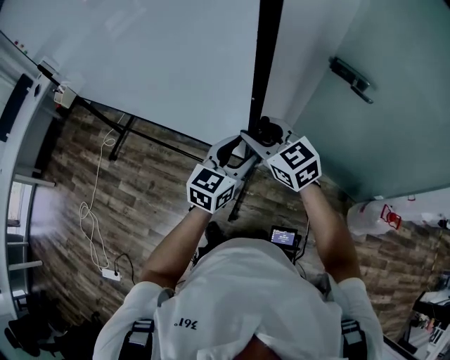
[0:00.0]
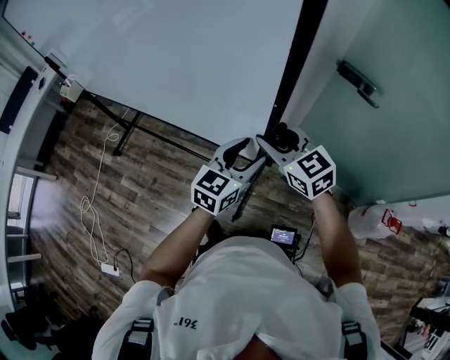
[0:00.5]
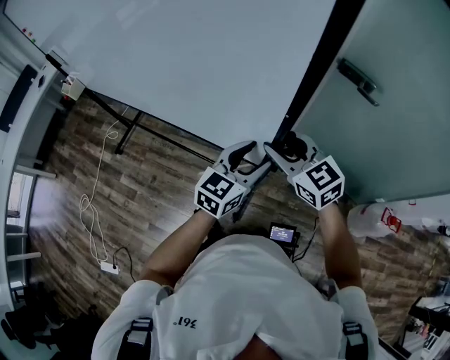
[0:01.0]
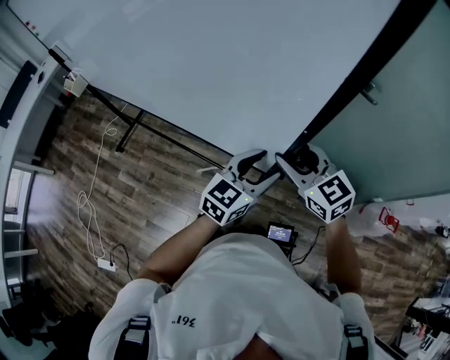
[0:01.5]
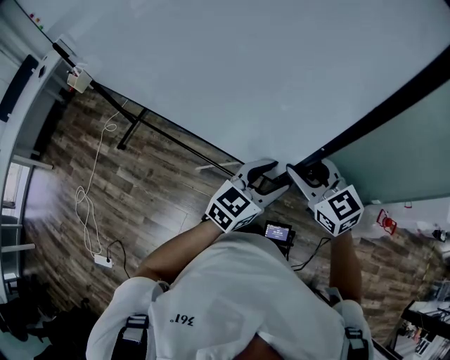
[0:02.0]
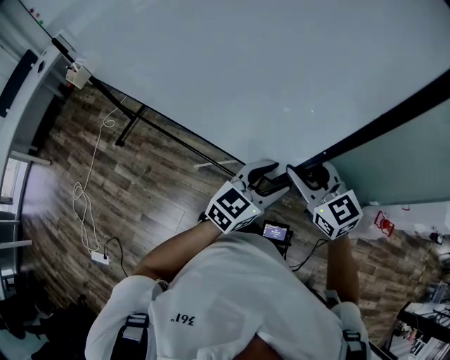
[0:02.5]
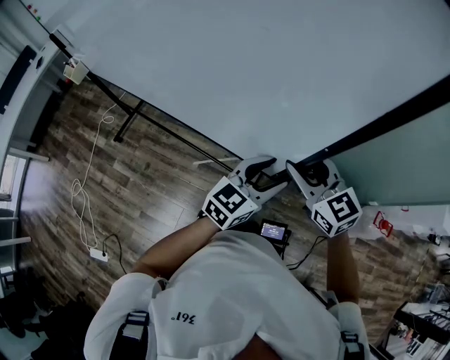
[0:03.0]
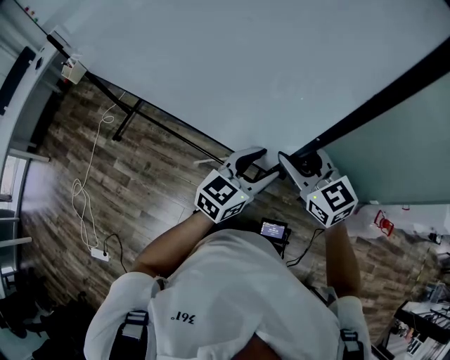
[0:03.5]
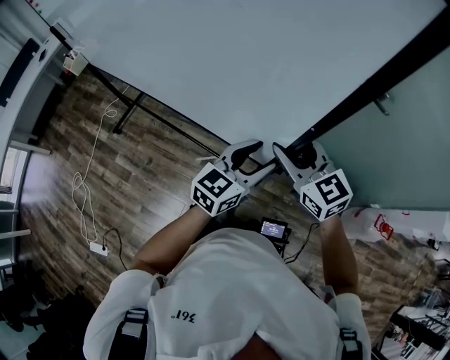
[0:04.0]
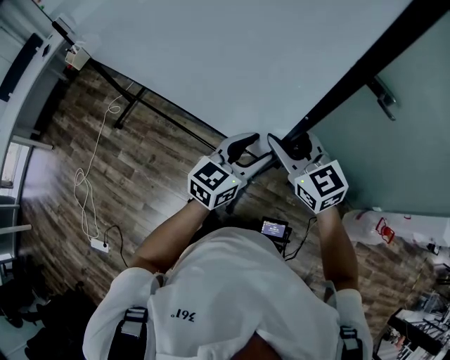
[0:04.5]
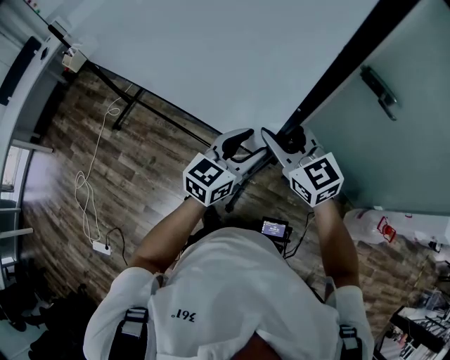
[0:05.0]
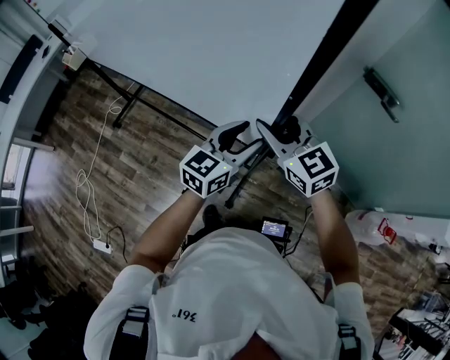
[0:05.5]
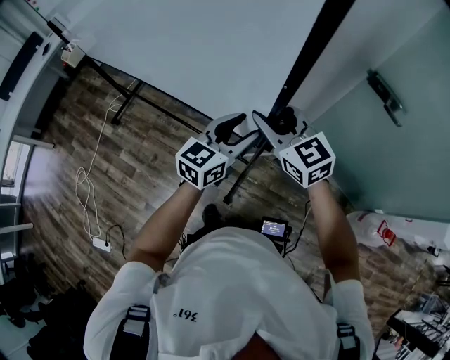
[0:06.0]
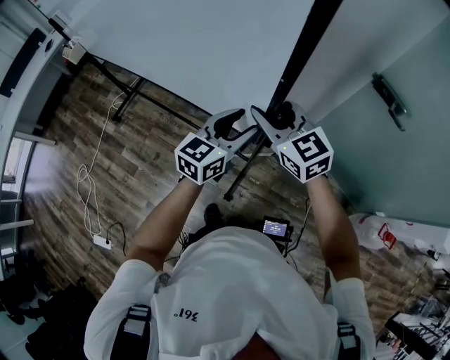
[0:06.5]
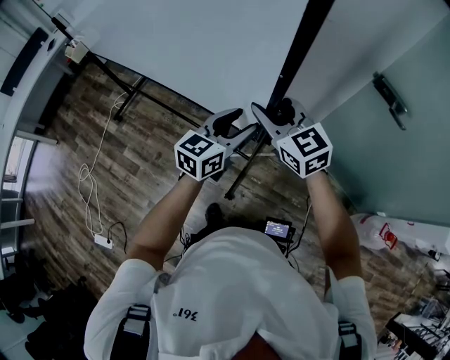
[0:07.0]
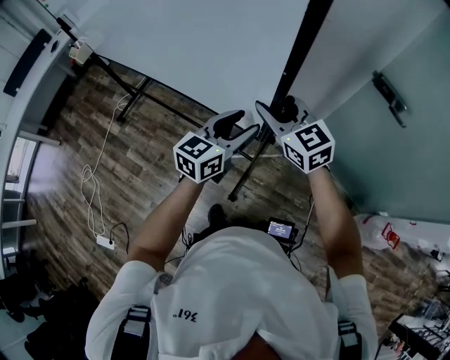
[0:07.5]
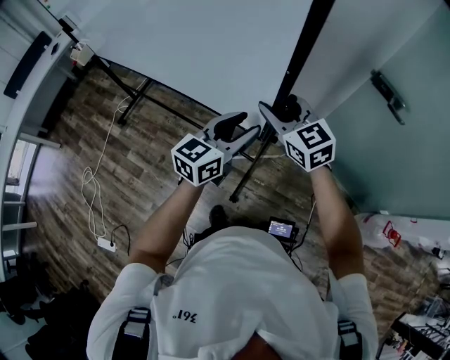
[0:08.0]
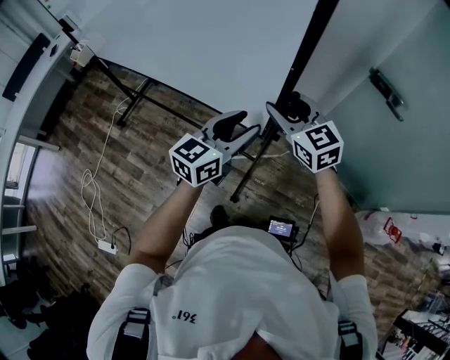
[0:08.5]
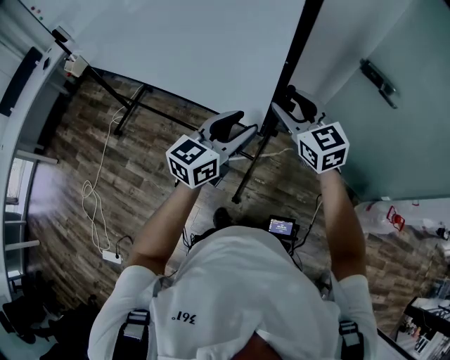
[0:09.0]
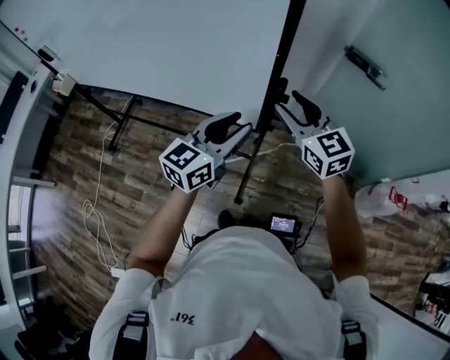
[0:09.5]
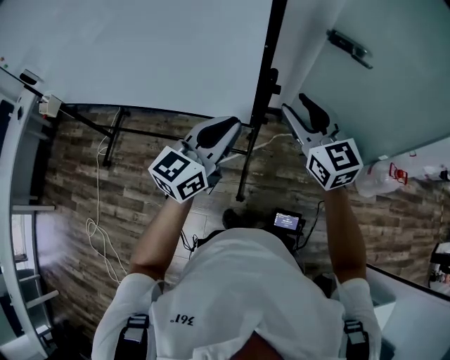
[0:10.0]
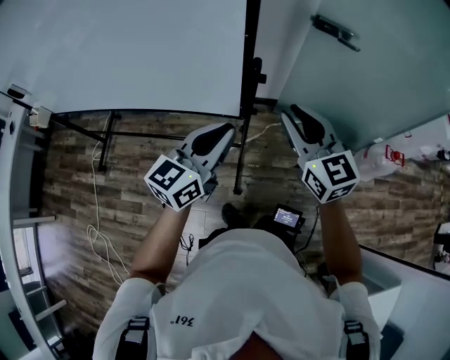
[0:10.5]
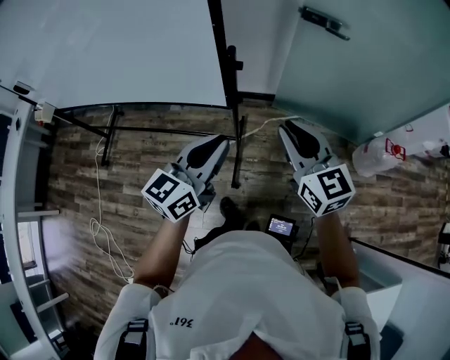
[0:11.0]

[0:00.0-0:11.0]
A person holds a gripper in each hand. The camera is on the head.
0:00.0 to 0:02.0: The grippers both shift backward and to the right by approximately 15 cm.
0:02.0 to 0:03.5: The right gripper changes place by about 5 cm. The left gripper shifts by roughly 5 cm.
0:03.5 to 0:05.5: The grippers both shift to the left and forward by about 15 cm.
0:05.5 to 0:07.5: The right gripper moves some 5 cm.
0:07.5 to 0:09.0: The left gripper ends up roughly 5 cm from where it was; the right gripper moves approximately 5 cm.
0:09.0 to 0:11.0: The right gripper moves backward and to the right, about 20 cm, changes its angle by approximately 20 degrees, and closes up. The left gripper travels backward by some 15 cm, and closes up.

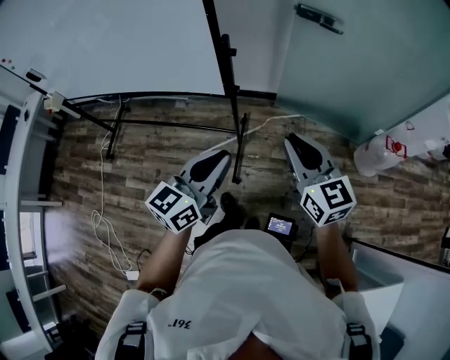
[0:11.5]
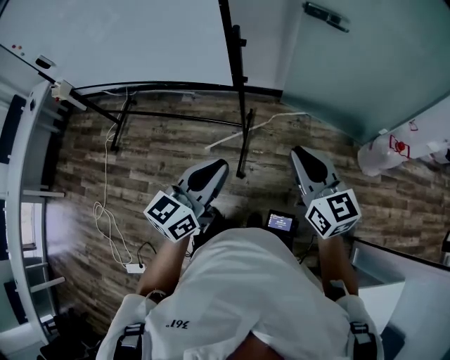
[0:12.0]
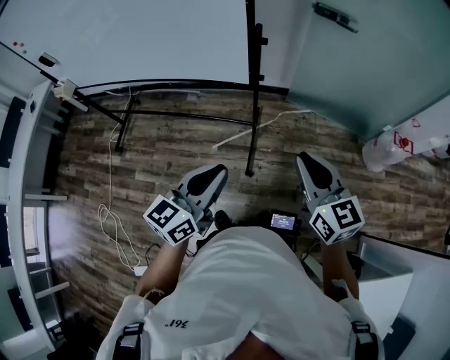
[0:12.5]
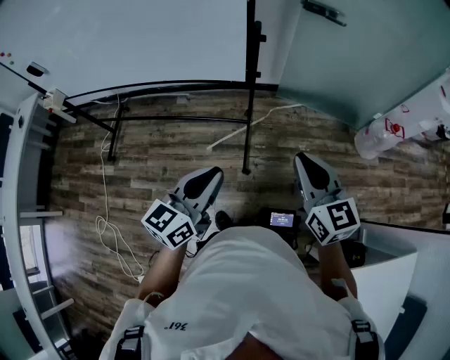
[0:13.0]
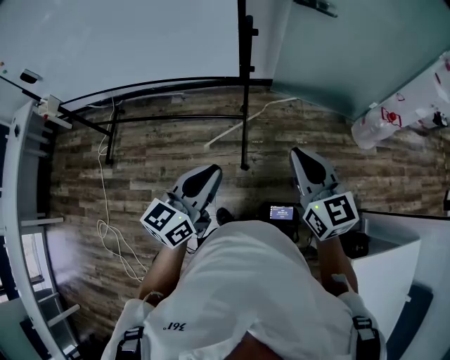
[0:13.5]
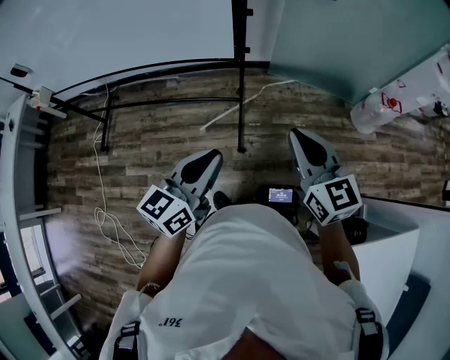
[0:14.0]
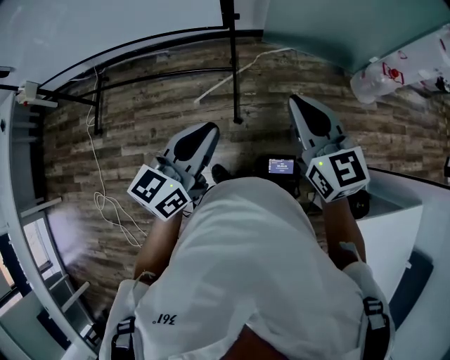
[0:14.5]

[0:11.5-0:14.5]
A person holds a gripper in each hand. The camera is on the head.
0:11.5 to 0:13.0: The left gripper shifts some 15 cm to the left and backward. Meanwhile the right gripper is displaced backward and to the left by some 15 cm.
0:13.0 to 0:14.5: The grippers make only small movements.

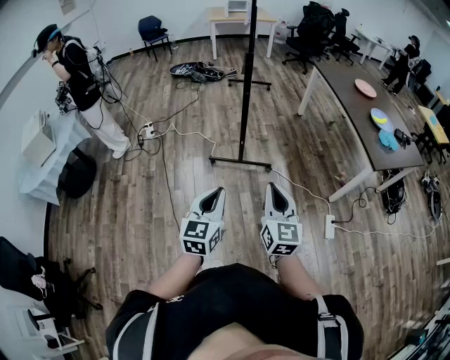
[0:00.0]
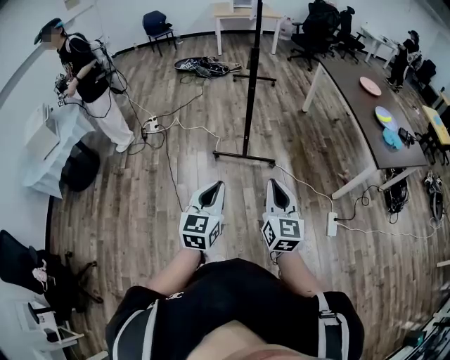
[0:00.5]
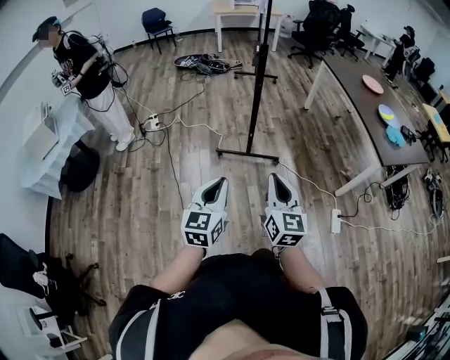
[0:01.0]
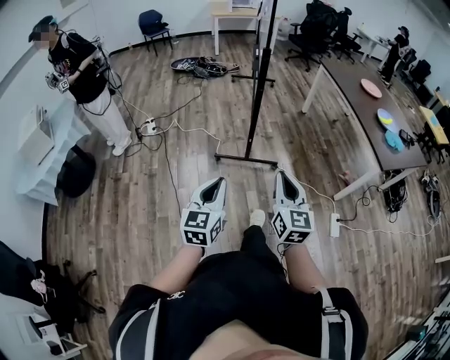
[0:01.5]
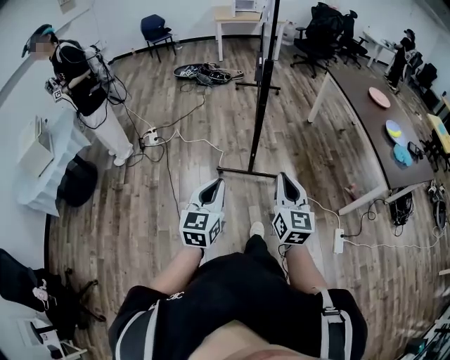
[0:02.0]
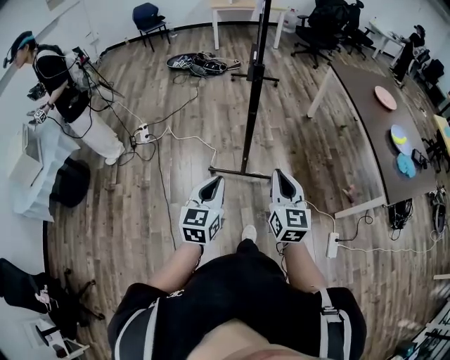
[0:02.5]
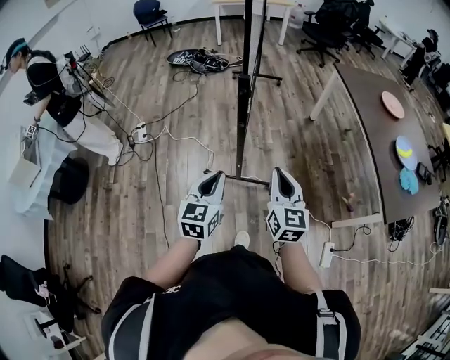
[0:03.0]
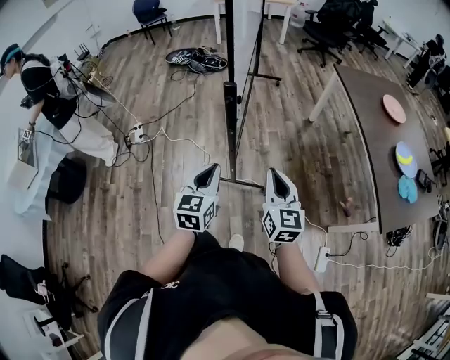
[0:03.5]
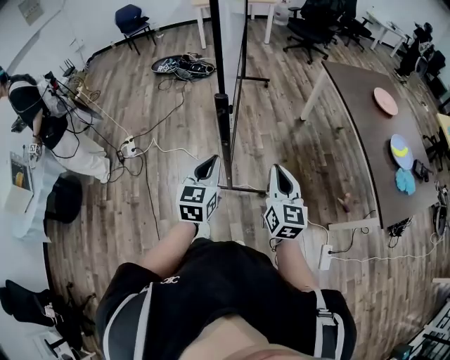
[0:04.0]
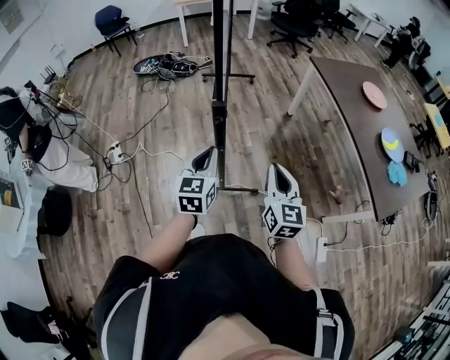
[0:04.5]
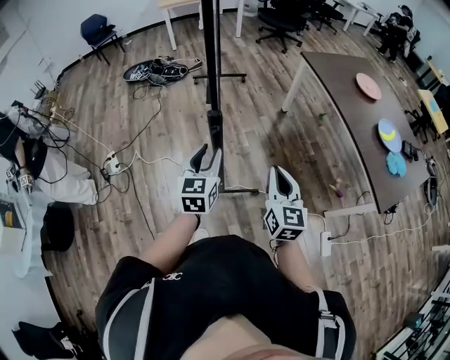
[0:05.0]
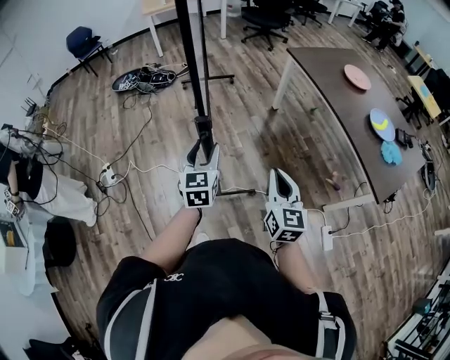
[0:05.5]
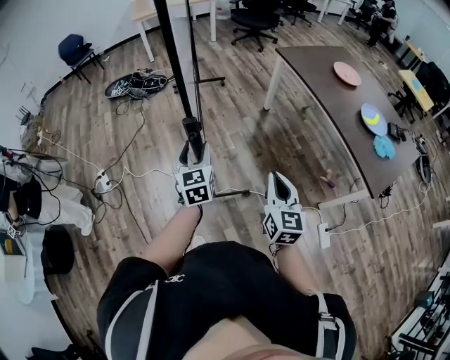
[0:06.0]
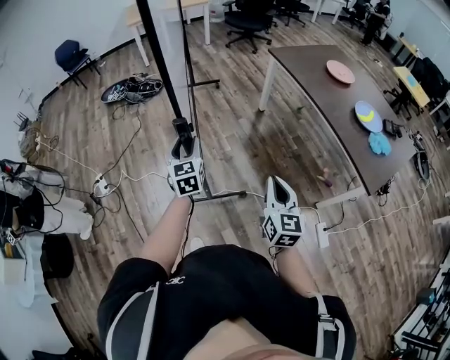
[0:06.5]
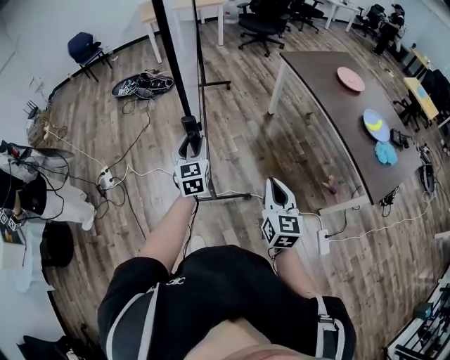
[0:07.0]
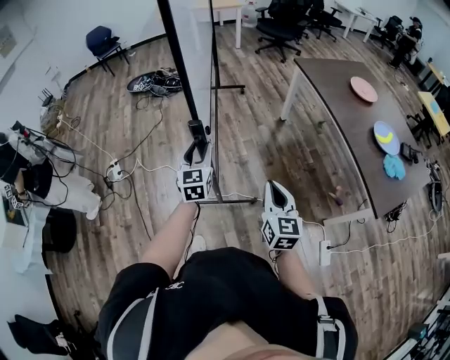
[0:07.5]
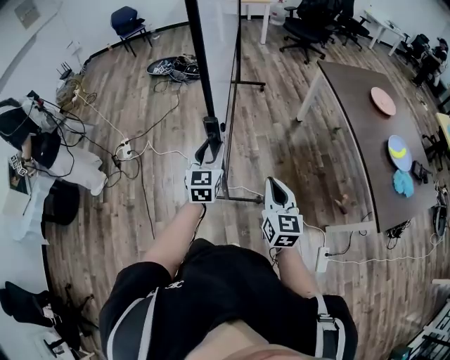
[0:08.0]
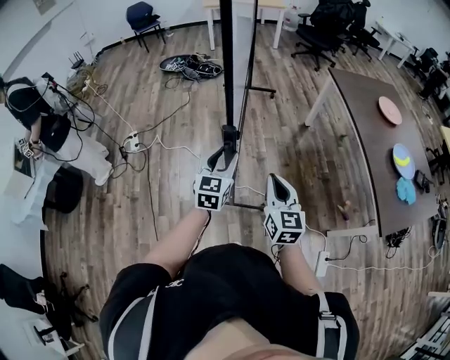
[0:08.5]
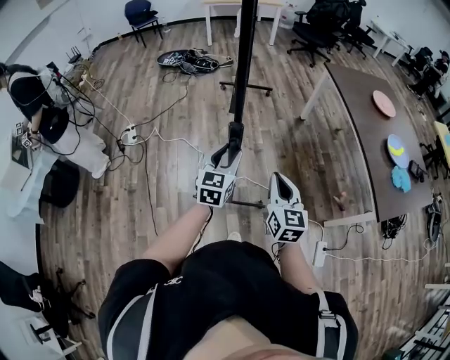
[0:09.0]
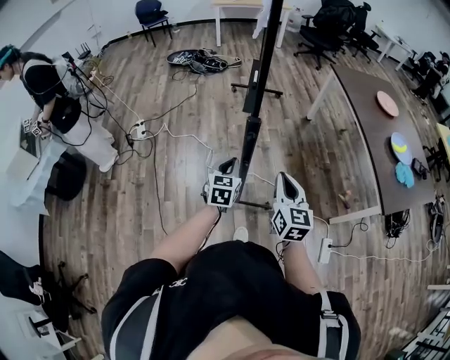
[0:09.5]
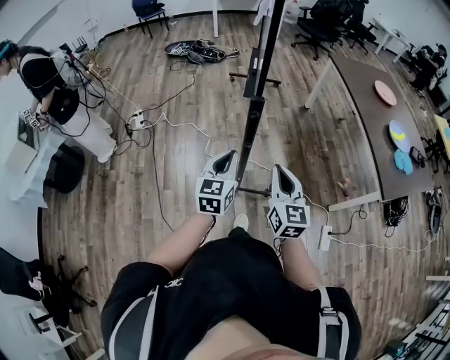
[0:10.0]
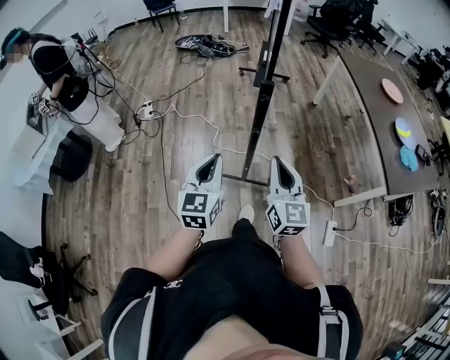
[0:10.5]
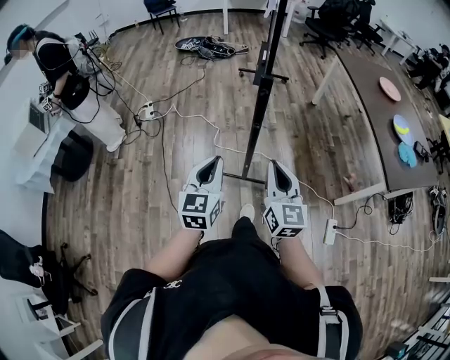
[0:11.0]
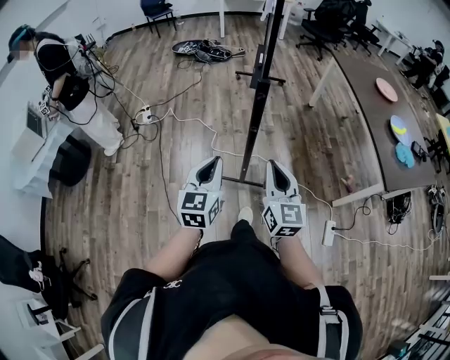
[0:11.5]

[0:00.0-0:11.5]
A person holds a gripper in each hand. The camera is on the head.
0:00.0 to 0:02.0: The right gripper moves forward, some 15 cm. Meanwhile the left gripper travels forward and to the left by approximately 15 cm.
0:02.0 to 0:04.0: Both grippers move forward, approximately 35 cm.
0:04.0 to 0:06.0: The left gripper heads forward, covering approximately 15 cm, and opens up.
0:06.0 to 0:07.5: The grippers make only small movements.
0:07.5 to 0:09.5: The right gripper shifts some 15 cm backward and to the left; the left gripper is displaced backward by approximately 25 cm, and closes up.
0:09.5 to 0:11.5: The left gripper travels backward and upward by approximately 20 cm, while the right gripper is displaced backward and to the left by approximately 15 cm.

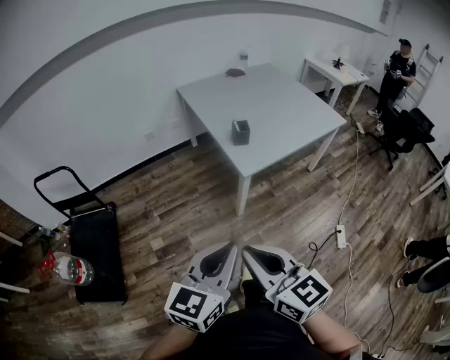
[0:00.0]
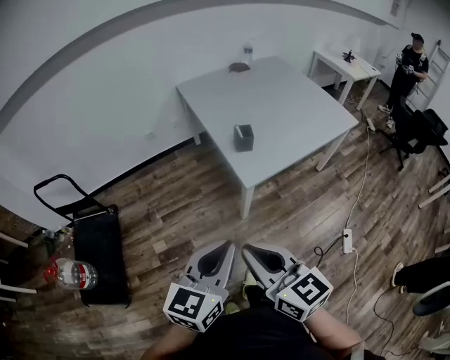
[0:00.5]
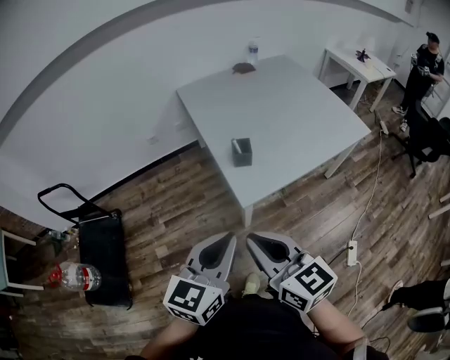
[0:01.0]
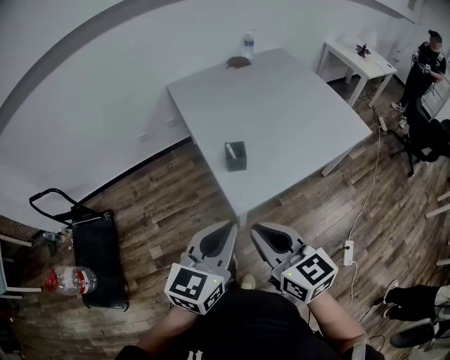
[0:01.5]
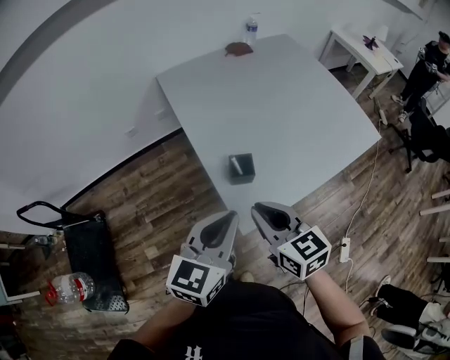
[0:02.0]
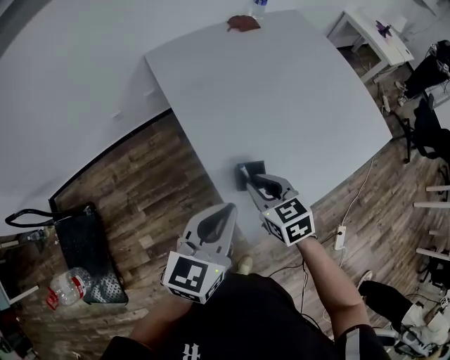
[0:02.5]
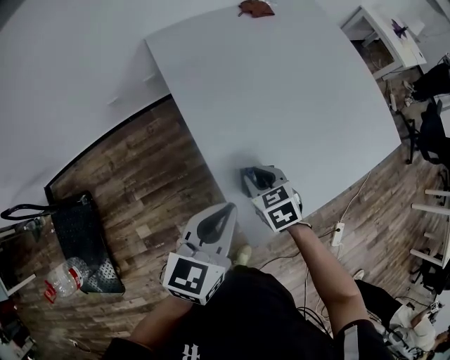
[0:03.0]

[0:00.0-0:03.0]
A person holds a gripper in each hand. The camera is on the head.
0:00.0 to 0:01.5: The two grippers go roughly 30 cm forward and to the right.
0:01.5 to 0:03.0: The left gripper heads forward and downward, covering roughly 25 cm; the right gripper heads forward and downward, covering some 40 cm, and points its fingers approximately 40 degrees further downward.
